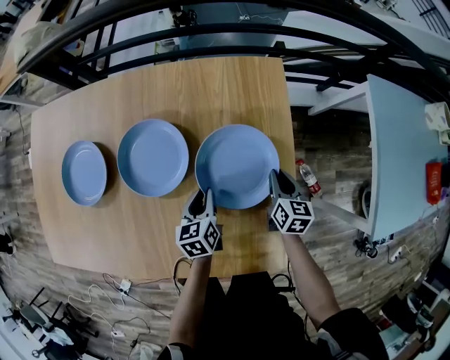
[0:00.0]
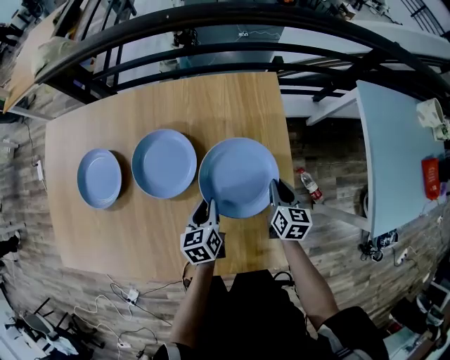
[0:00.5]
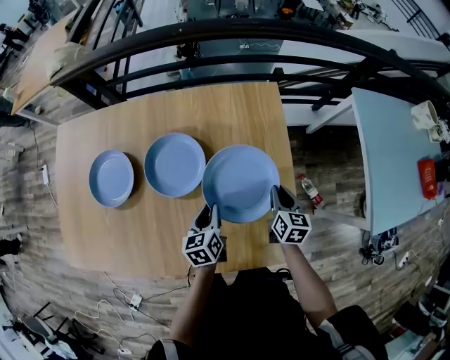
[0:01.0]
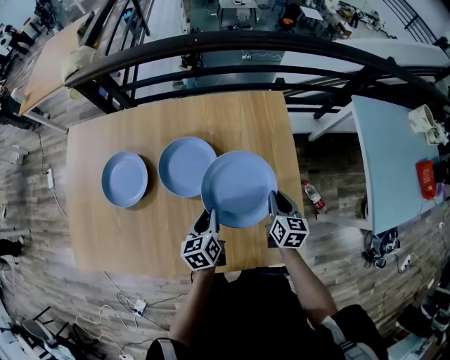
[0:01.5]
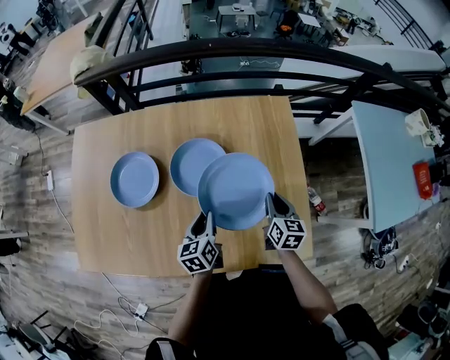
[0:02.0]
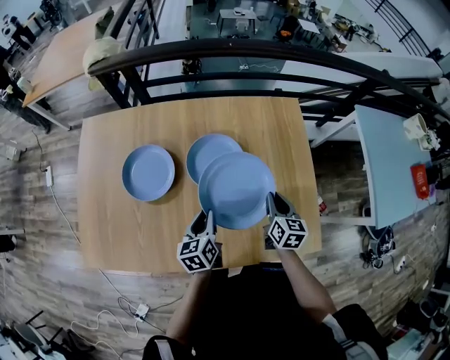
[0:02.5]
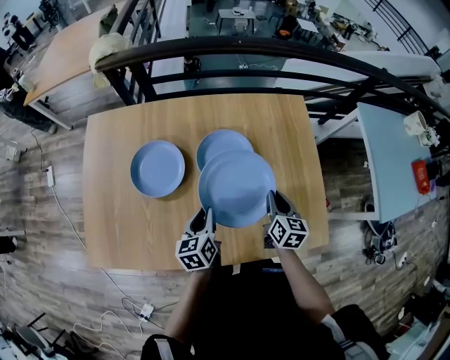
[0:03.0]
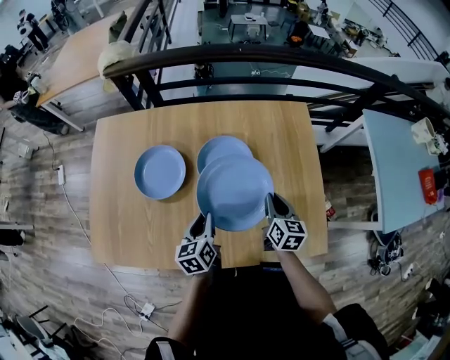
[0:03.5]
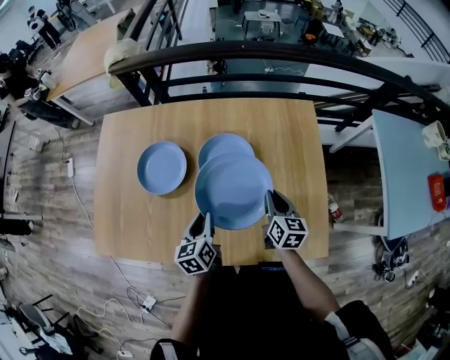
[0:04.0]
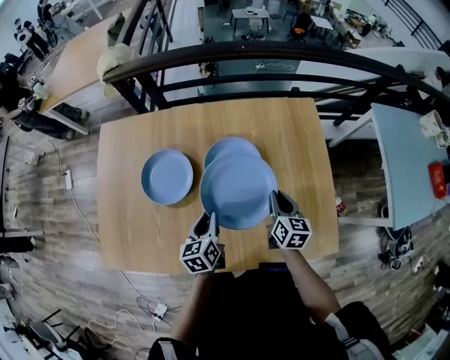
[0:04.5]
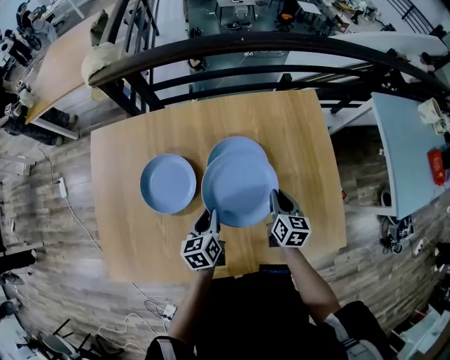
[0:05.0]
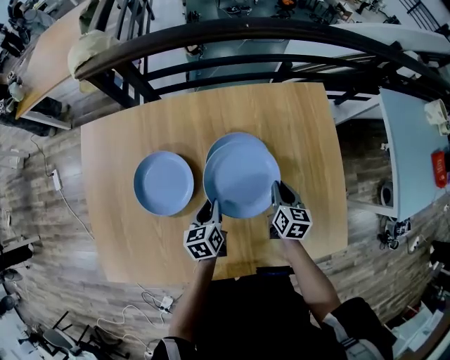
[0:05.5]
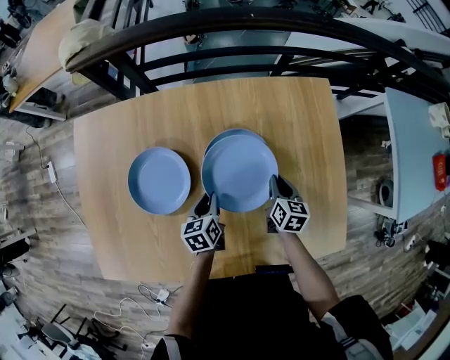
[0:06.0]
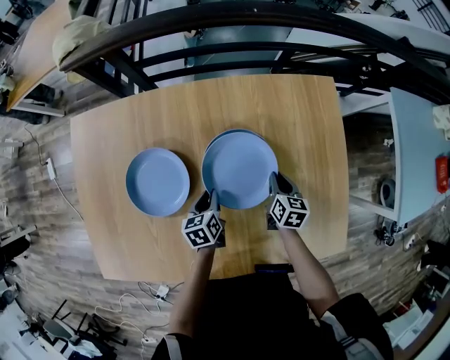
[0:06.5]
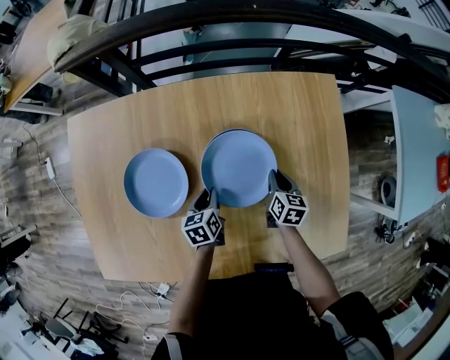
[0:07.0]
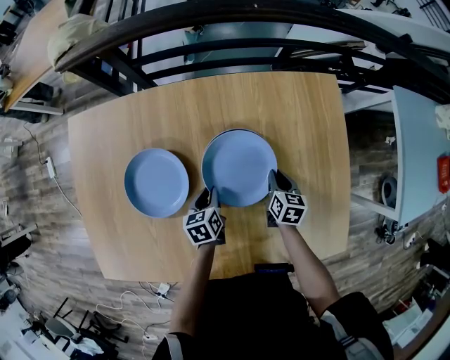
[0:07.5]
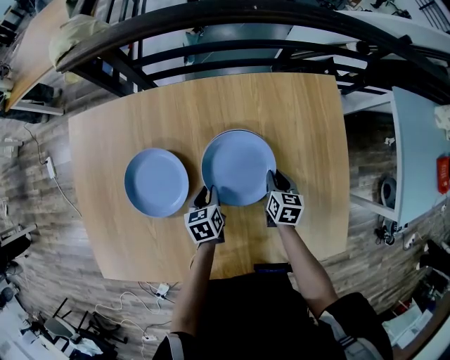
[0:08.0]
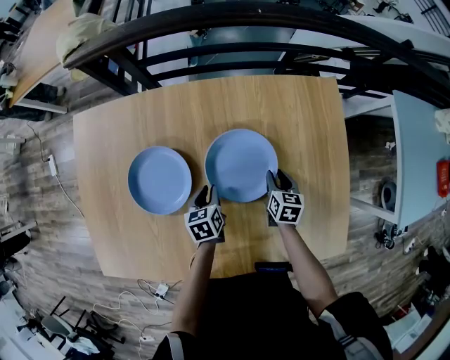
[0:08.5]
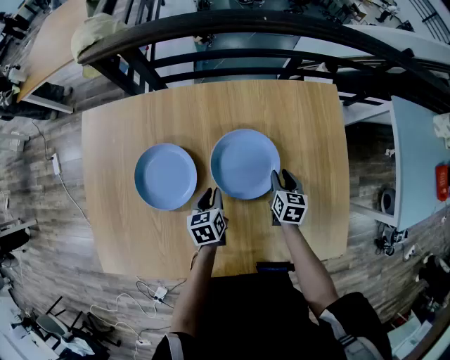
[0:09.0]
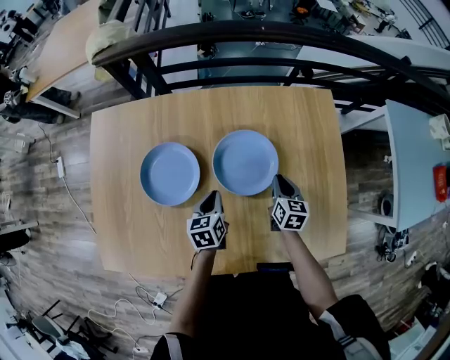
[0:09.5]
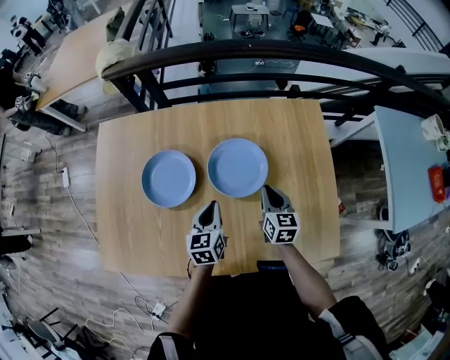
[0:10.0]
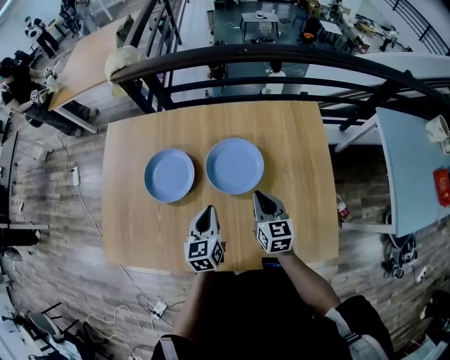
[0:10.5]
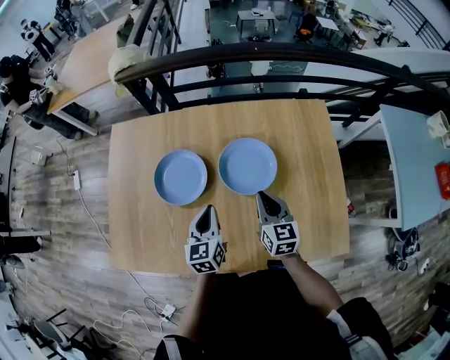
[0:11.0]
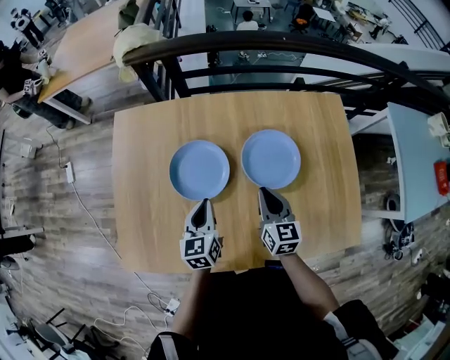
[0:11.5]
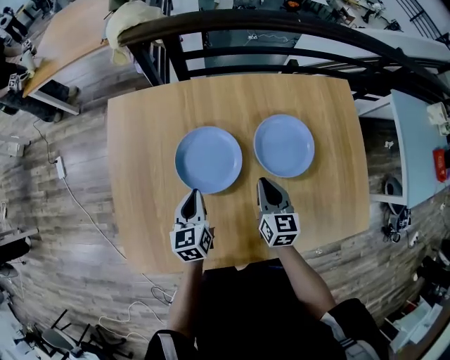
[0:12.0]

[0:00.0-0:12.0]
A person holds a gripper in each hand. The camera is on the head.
0:00.0 to 0:02.0: Both grippers move upward, to the left and backward, roughly 20 cm.
0:02.0 to 0:04.0: Both grippers move to the left, approximately 10 cm.
0:04.0 to 0:06.0: Both grippers travel together downward and forward, approximately 15 cm.
0:06.0 to 0:08.0: The right gripper shifts by some 5 cm.
0:08.0 to 0:10.0: The two grippers go roughly 15 cm upward and backward. The left gripper swivels some 20 degrees. The right gripper swivels approximately 20 degrees.
0:10.0 to 0:12.0: Both grippers move to the left, roughly 25 cm.

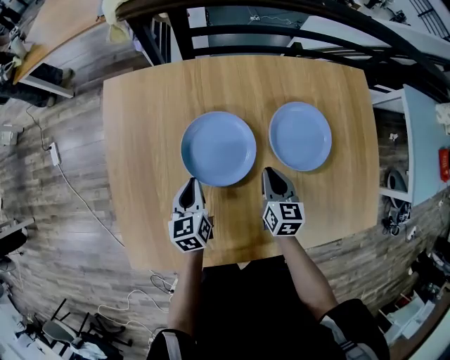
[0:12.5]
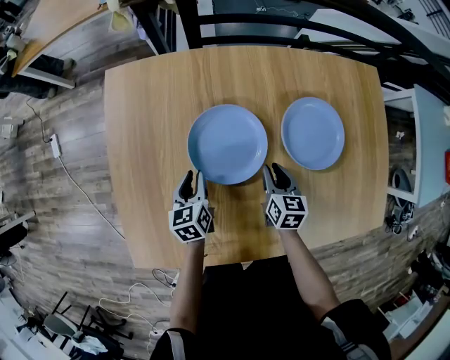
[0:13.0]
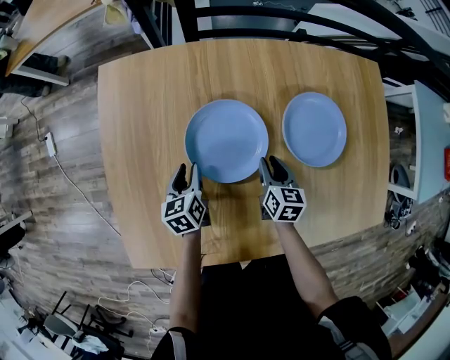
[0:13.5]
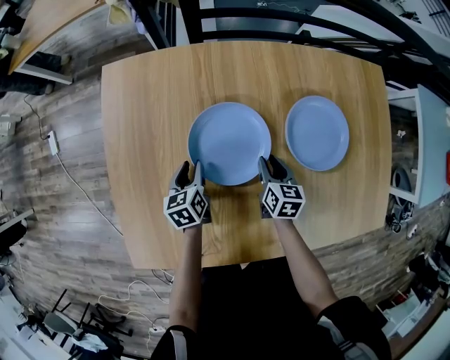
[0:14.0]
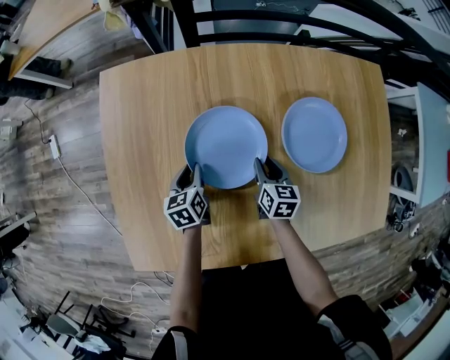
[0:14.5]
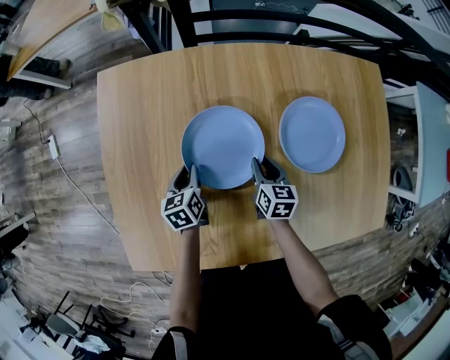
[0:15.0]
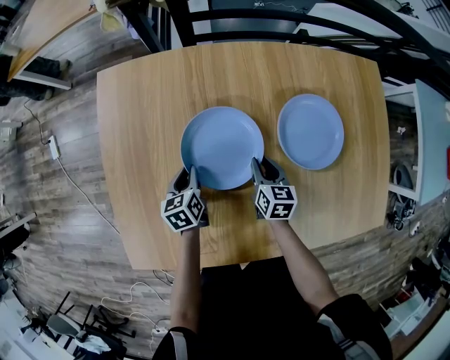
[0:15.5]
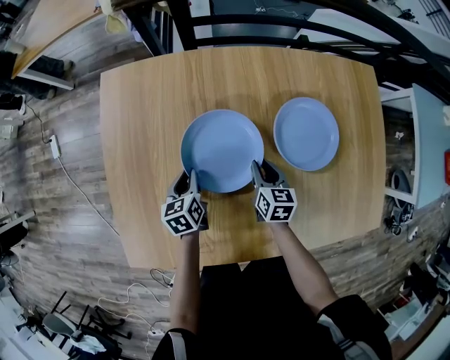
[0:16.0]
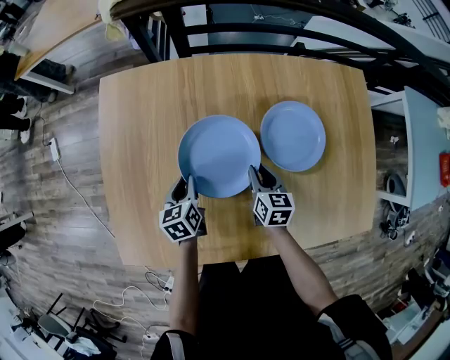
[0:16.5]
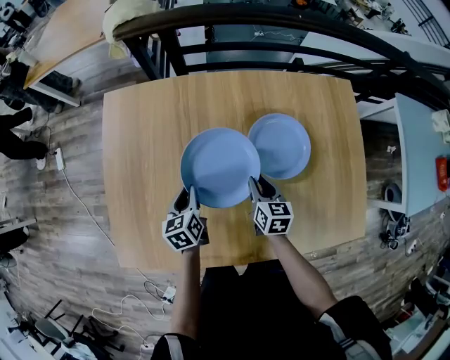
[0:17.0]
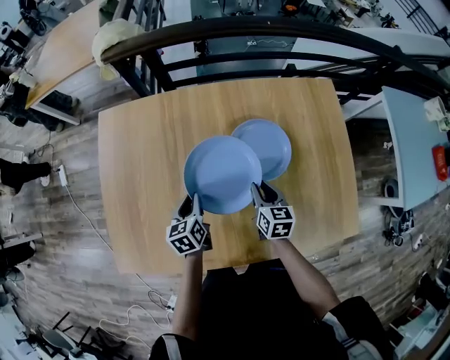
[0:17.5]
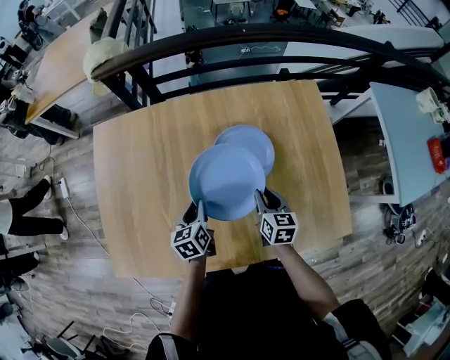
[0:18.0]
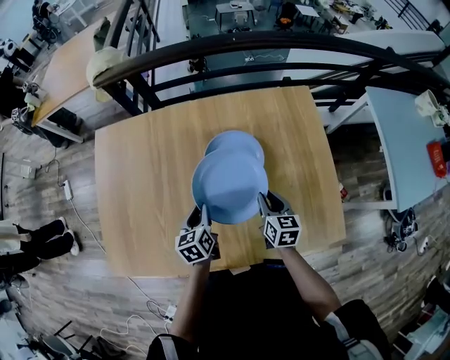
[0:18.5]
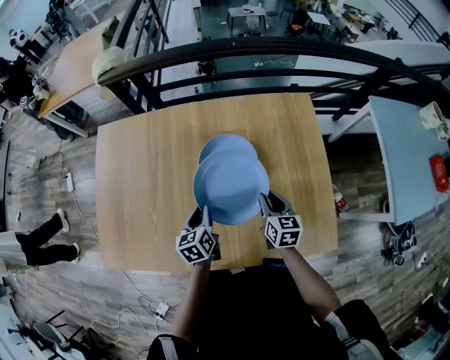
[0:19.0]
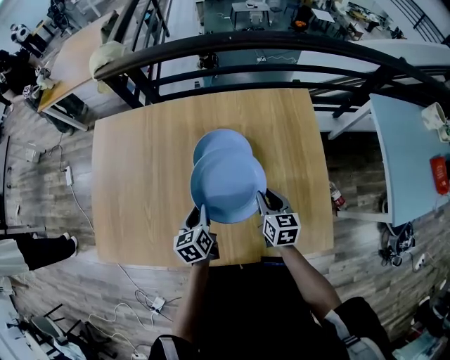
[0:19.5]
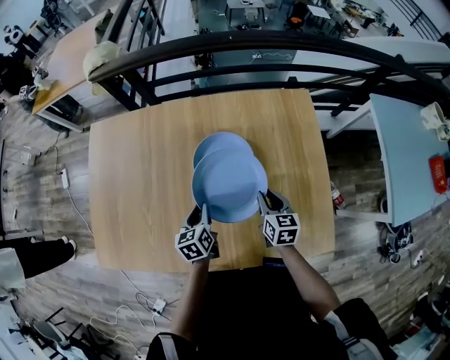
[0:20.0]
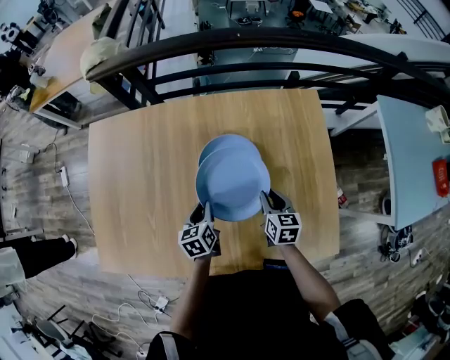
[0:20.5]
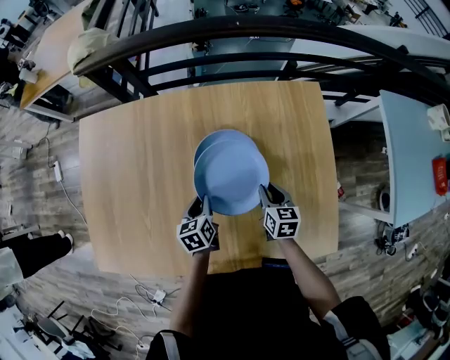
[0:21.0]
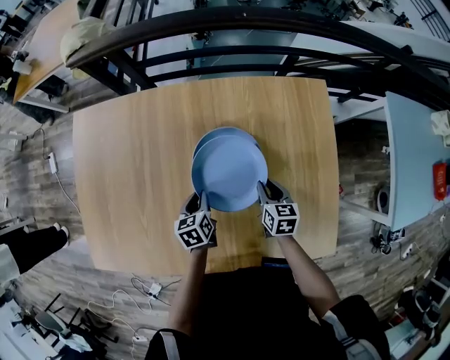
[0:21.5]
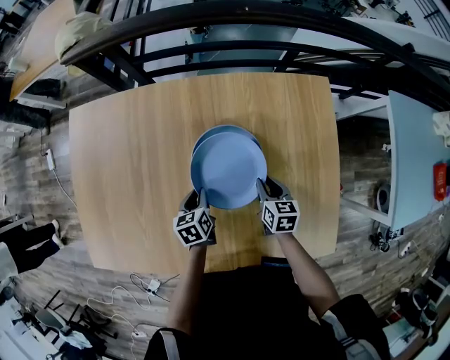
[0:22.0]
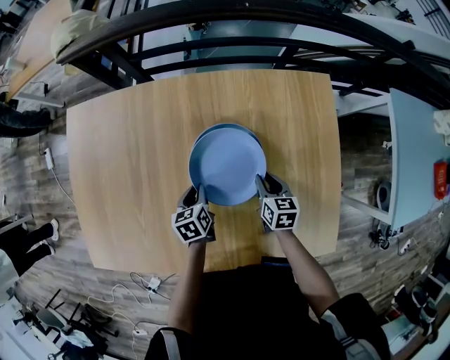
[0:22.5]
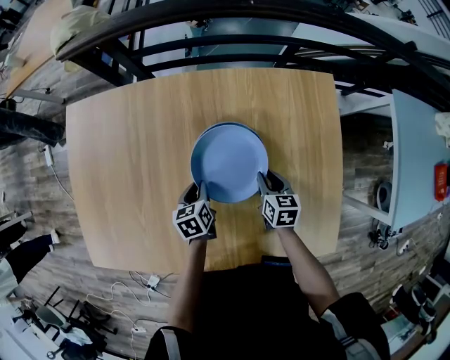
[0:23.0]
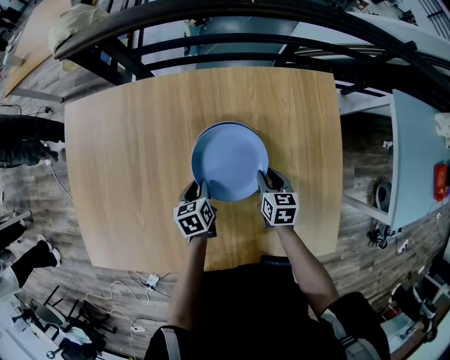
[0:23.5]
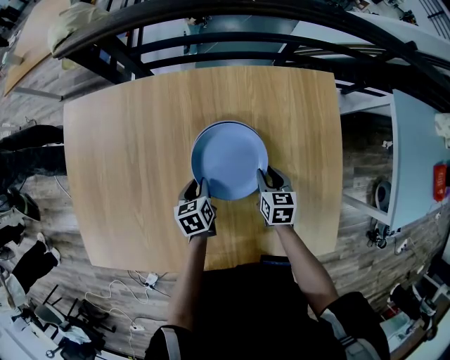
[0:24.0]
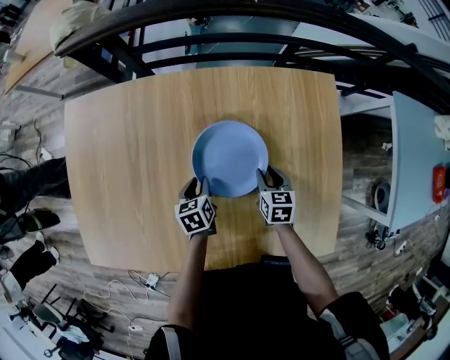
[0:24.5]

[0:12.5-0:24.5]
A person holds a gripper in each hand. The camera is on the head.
0:12.5 to 0:14.5: Both grippers travel together downward, about 10 cm. The right gripper opens up.
0:14.5 to 0:16.5: The two grippers go approximately 5 cm upward.
0:16.5 to 0:18.5: The two grippers go roughly 25 cm to the right and upward.
0:18.5 to 0:20.5: The right gripper changes place by about 10 cm. Meanwhile the left gripper shifts by some 5 cm.
0:20.5 to 0:22.5: The two grippers go approximately 10 cm downward and forward.
0:22.5 to 0:24.5: The grippers move only a little.

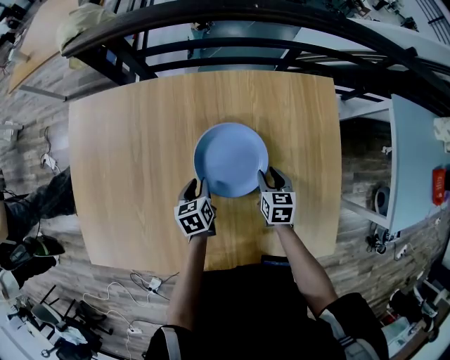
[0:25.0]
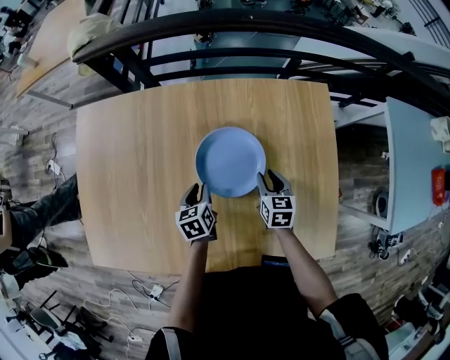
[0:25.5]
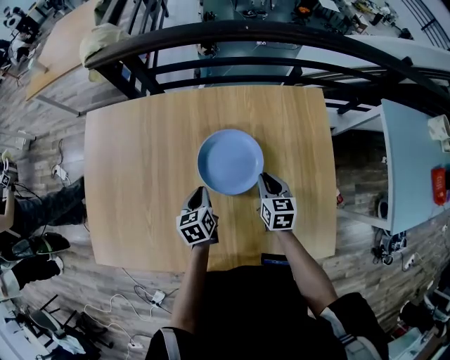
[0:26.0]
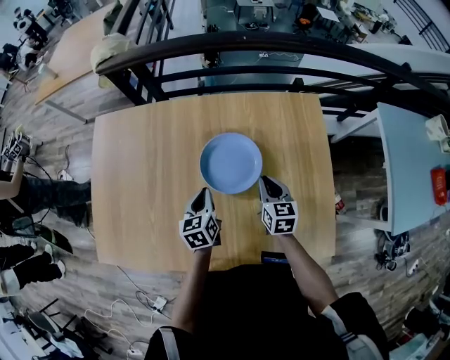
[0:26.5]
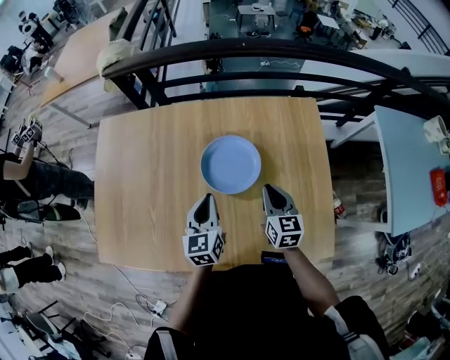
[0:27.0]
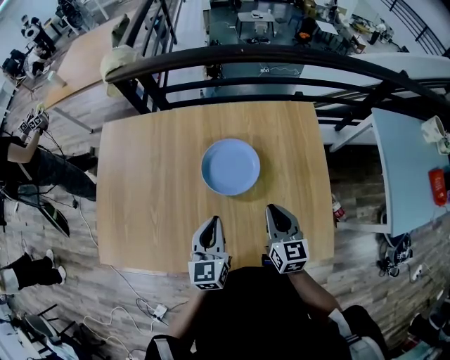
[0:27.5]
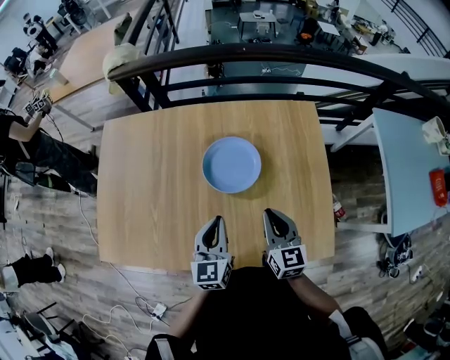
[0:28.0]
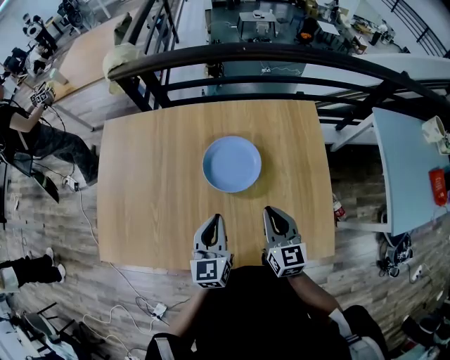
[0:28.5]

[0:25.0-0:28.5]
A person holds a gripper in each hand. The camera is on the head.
0:25.0 to 0:27.0: The left gripper moves upward, about 20 cm, rotates some 30 degrees, and closes up. The right gripper is displaced upward and backward by some 20 cm, swivels some 20 degrees, and closes up.
0:27.0 to 0:28.5: The right gripper goes roughly 10 cm backward and upward, while the left gripper shifts about 10 cm backward.
